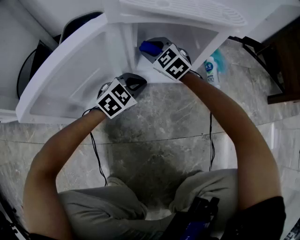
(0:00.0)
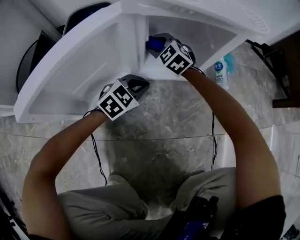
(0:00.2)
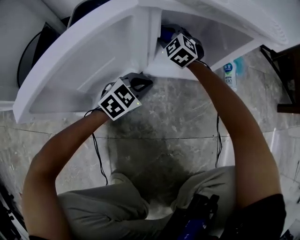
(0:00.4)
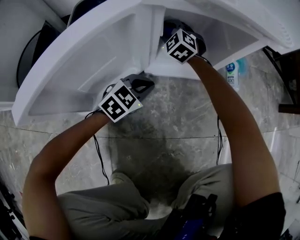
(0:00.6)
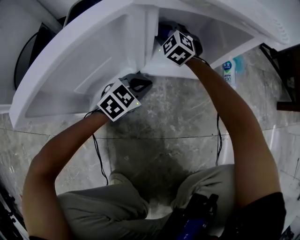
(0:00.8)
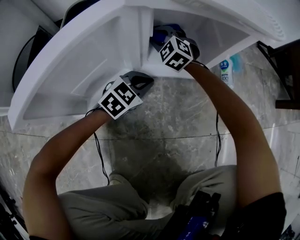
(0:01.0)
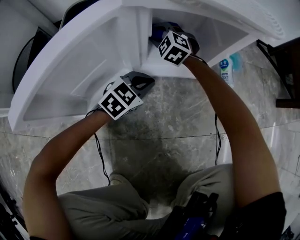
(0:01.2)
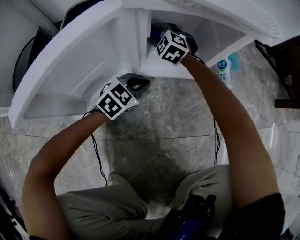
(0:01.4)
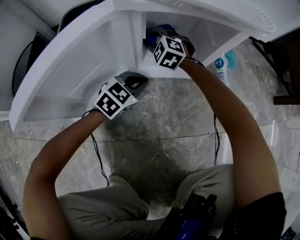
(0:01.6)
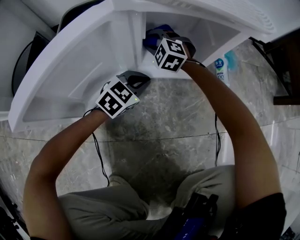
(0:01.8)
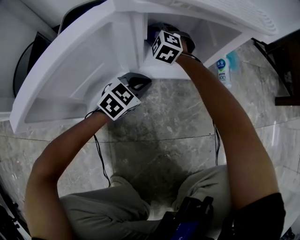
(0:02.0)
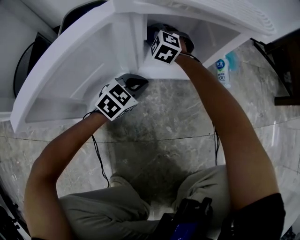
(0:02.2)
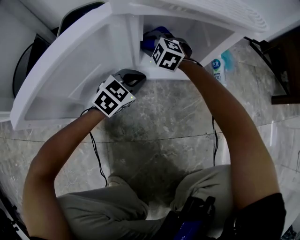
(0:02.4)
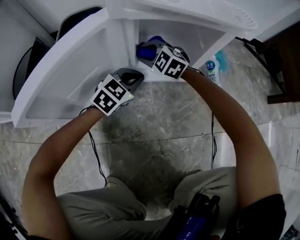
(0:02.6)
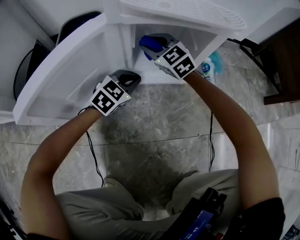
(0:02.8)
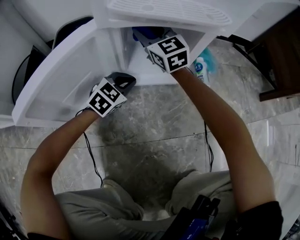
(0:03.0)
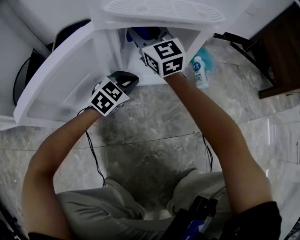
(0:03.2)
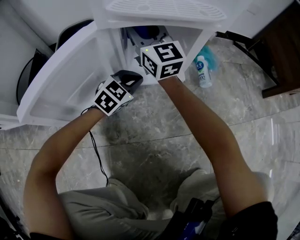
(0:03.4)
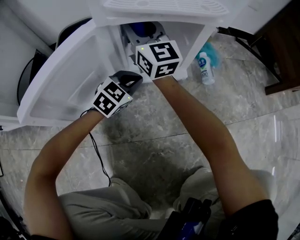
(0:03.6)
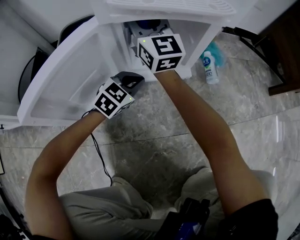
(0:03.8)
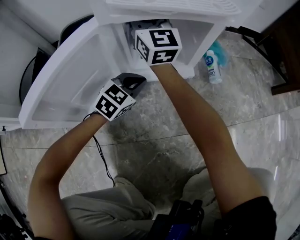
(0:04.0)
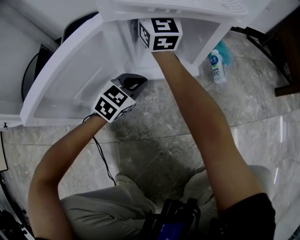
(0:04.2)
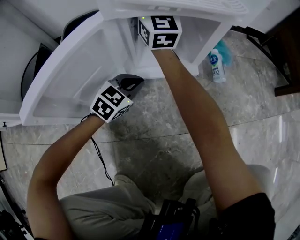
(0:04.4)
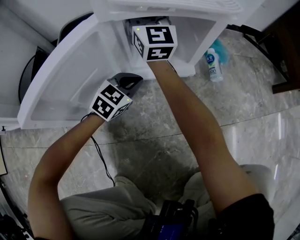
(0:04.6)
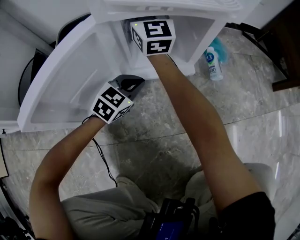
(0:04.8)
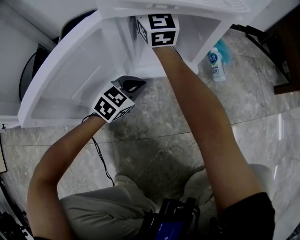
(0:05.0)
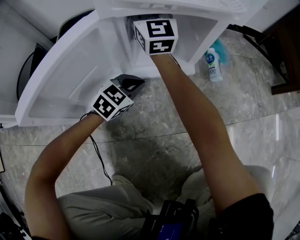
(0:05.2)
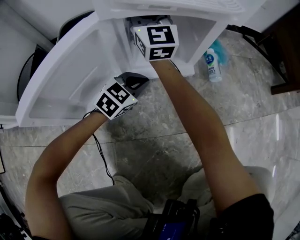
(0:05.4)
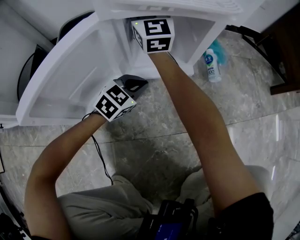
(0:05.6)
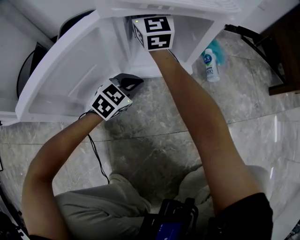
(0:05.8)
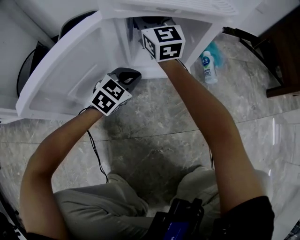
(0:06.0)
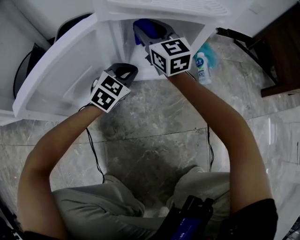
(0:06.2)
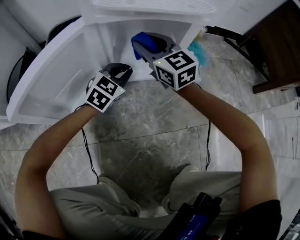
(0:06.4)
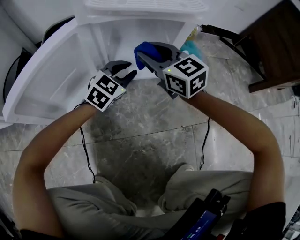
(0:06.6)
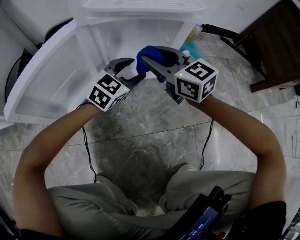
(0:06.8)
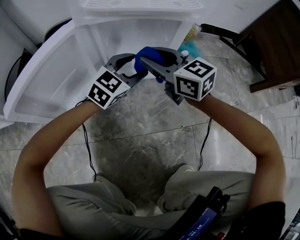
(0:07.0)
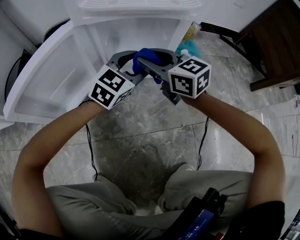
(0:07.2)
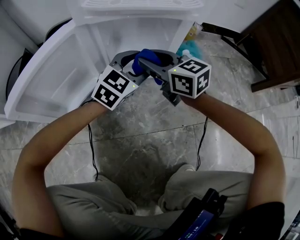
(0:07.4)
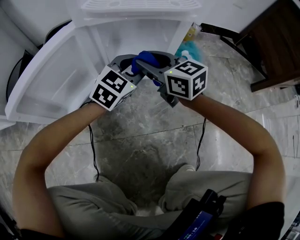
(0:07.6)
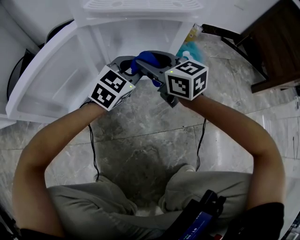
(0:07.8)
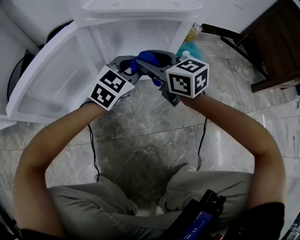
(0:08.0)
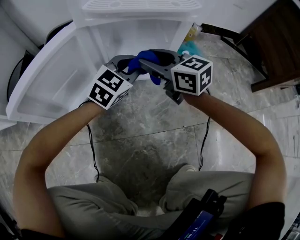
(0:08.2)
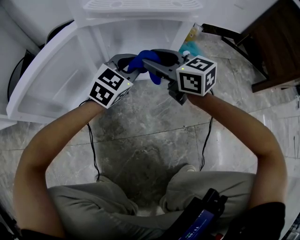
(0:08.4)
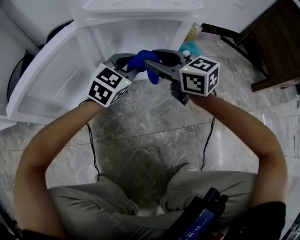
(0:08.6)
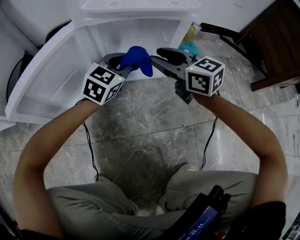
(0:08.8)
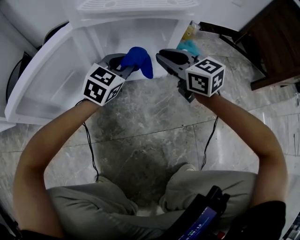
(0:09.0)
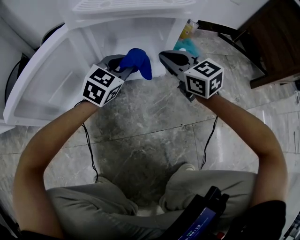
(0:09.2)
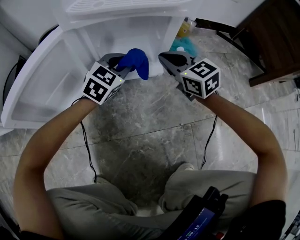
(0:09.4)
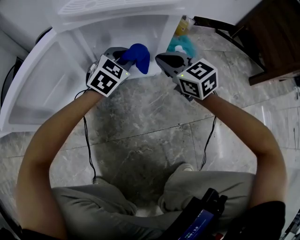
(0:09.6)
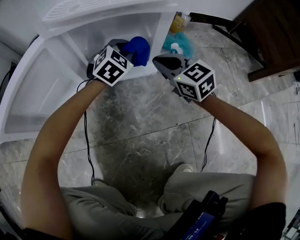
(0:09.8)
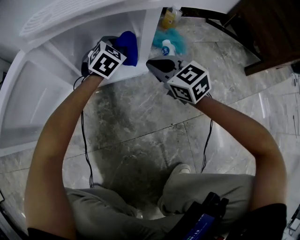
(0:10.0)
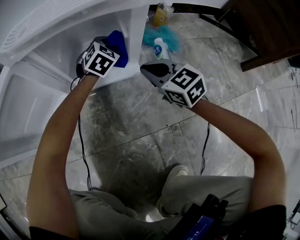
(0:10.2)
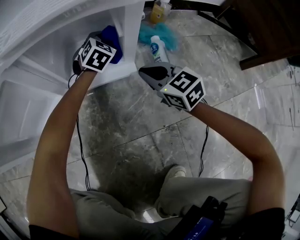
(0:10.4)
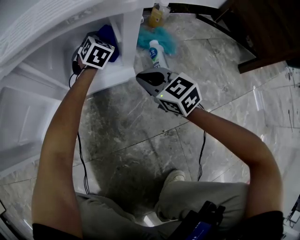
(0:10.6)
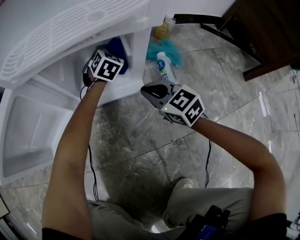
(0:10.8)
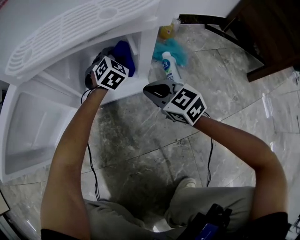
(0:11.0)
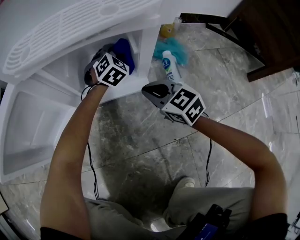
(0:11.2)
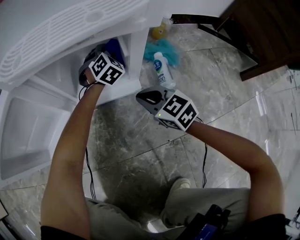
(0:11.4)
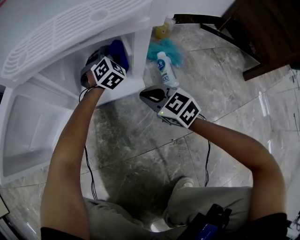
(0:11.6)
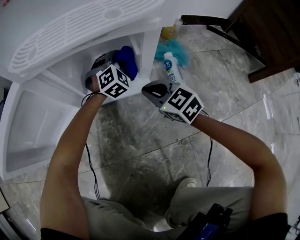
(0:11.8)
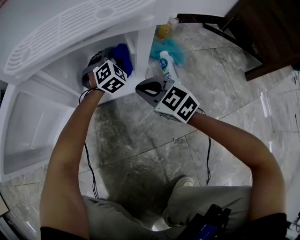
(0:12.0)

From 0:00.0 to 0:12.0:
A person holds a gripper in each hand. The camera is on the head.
From 0:00.0 to 0:01.6: The right gripper heads downward, covering some 5 cm, and swivels approximately 20 degrees.
From 0:01.6 to 0:03.0: The right gripper goes some 20 cm upward, and tilts its fingers roughly 30 degrees upward.
From 0:03.0 to 0:04.4: The right gripper goes about 5 cm upward, and swivels approximately 30 degrees.
From 0:04.4 to 0:06.0: The grippers make only small movements.
From 0:06.0 to 0:07.6: The left gripper heads to the right and upward, covering roughly 15 cm, and opens up. The right gripper is displaced backward, to the right and downward by about 20 cm, and swivels about 30 degrees.
From 0:07.6 to 0:09.0: The right gripper goes roughly 5 cm to the right.
From 0:09.0 to 0:10.4: The right gripper heads downward and to the right, covering approximately 15 cm, while the left gripper heads forward, downward and to the right, covering roughly 20 cm, and rotates approximately 20 degrees.
From 0:10.4 to 0:12.0: The right gripper ends up about 5 cm from where it was, while the left gripper swivels some 20 degrees.

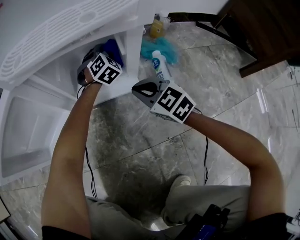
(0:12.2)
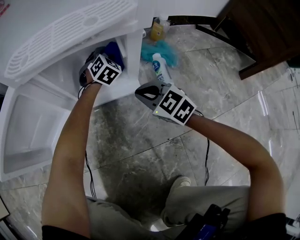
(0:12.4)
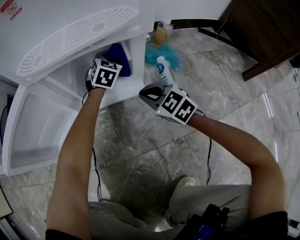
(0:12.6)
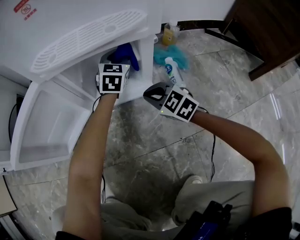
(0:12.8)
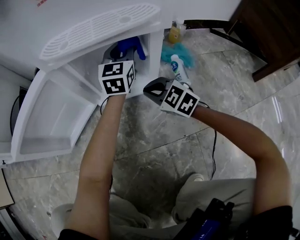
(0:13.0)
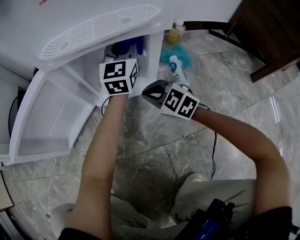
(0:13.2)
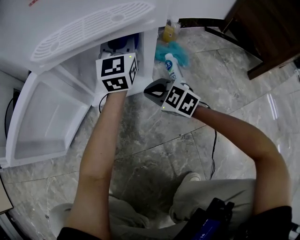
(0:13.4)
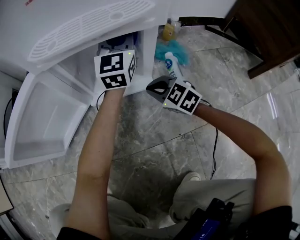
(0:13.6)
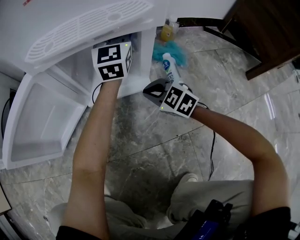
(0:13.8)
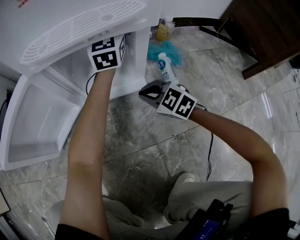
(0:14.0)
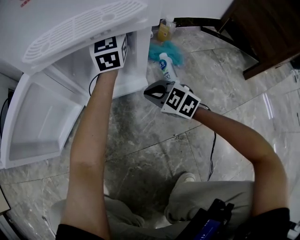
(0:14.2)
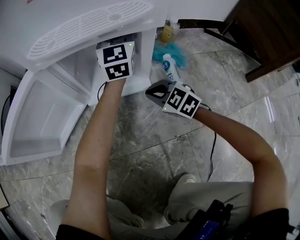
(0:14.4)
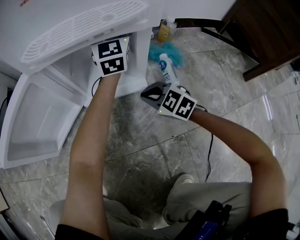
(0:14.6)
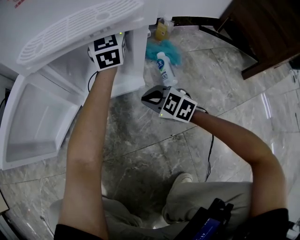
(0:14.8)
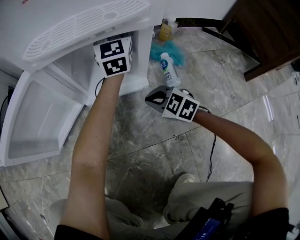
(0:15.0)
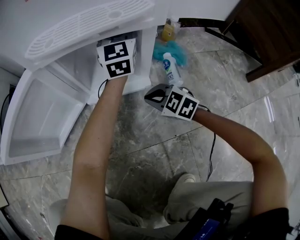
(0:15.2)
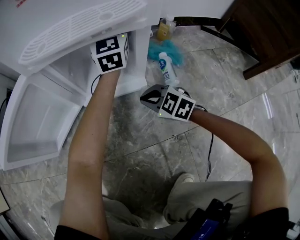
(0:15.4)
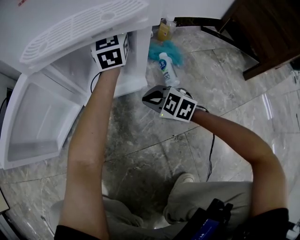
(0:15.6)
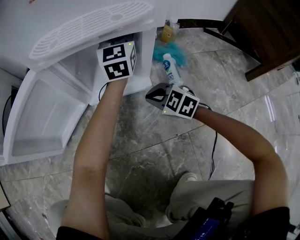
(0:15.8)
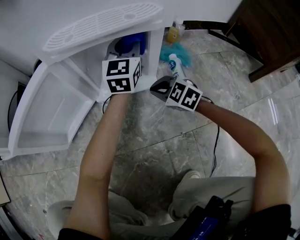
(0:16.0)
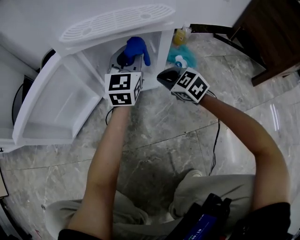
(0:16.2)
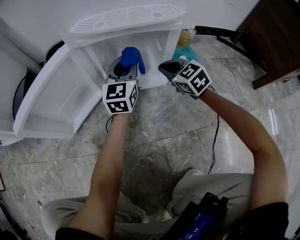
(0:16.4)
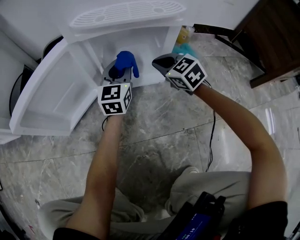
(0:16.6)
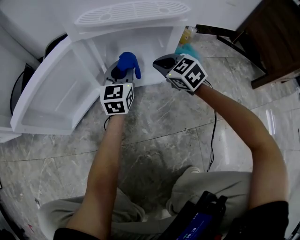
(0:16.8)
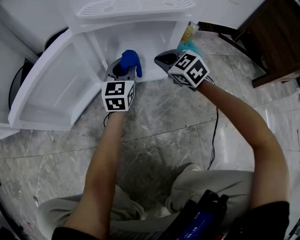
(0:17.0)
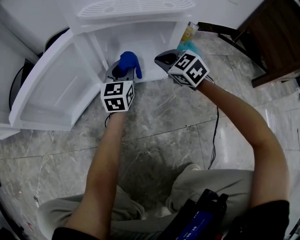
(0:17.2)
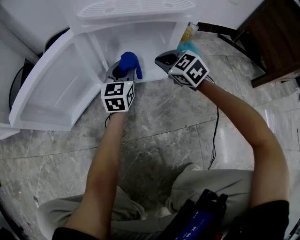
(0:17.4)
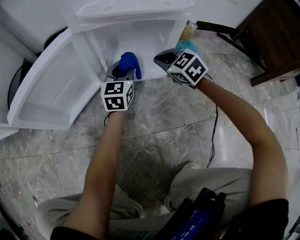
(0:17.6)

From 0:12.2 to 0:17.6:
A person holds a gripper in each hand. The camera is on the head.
From 0:12.2 to 0:13.6: The left gripper goes about 25 cm upward, and angles its fingers upward, by approximately 40 degrees.
From 0:13.6 to 0:15.0: The grippers move only a little.
From 0:15.0 to 0:16.2: The right gripper is displaced forward and upward by roughly 10 cm. Meanwhile the left gripper heads backward and to the left, covering roughly 10 cm.
From 0:16.2 to 0:17.6: The left gripper goes approximately 15 cm downward and to the left. The right gripper shifts by roughly 5 cm.

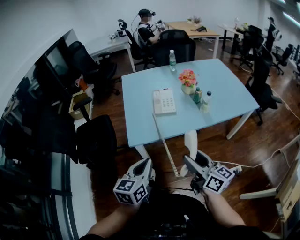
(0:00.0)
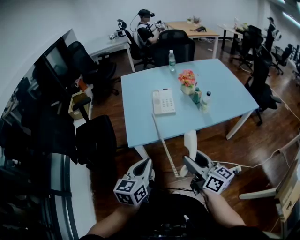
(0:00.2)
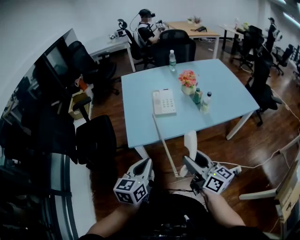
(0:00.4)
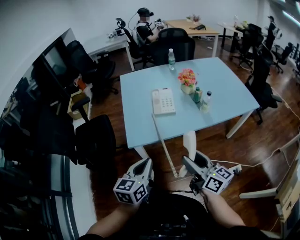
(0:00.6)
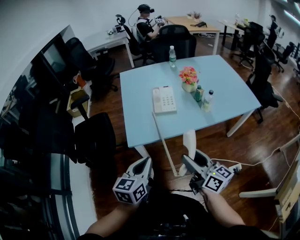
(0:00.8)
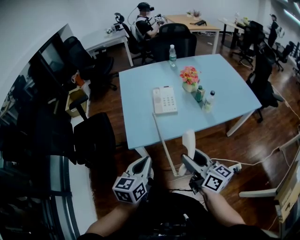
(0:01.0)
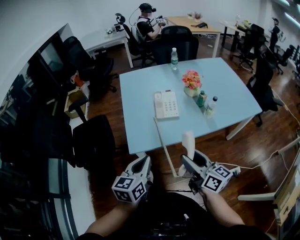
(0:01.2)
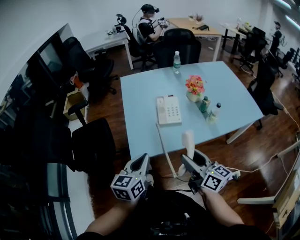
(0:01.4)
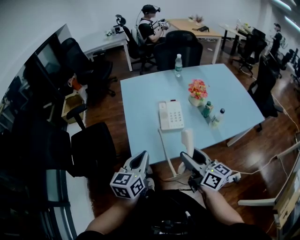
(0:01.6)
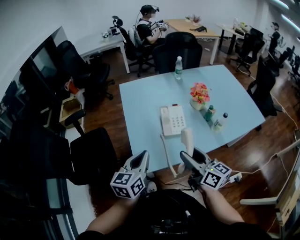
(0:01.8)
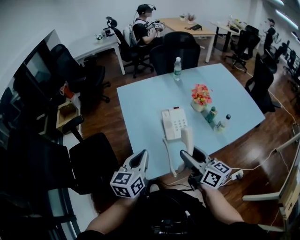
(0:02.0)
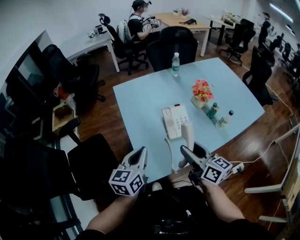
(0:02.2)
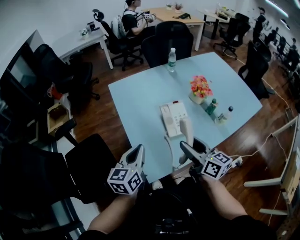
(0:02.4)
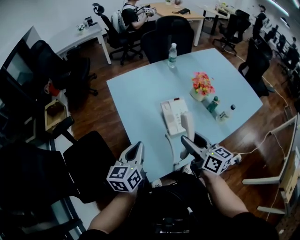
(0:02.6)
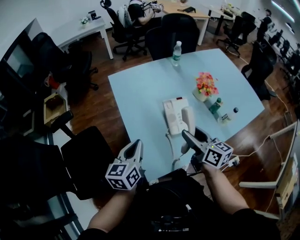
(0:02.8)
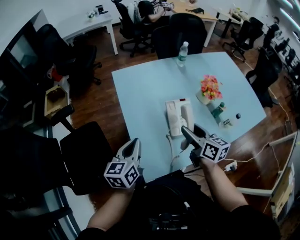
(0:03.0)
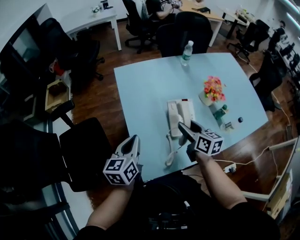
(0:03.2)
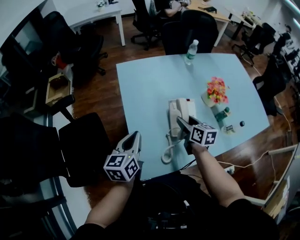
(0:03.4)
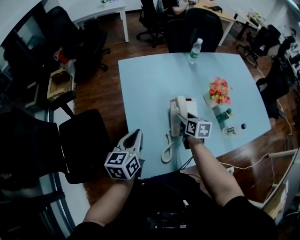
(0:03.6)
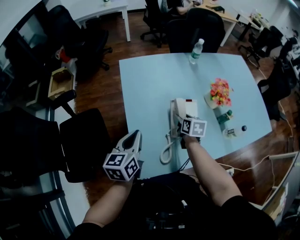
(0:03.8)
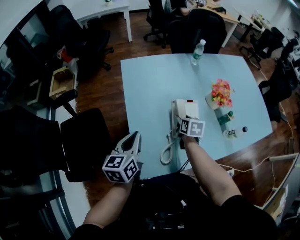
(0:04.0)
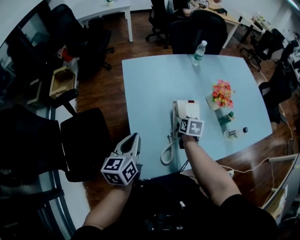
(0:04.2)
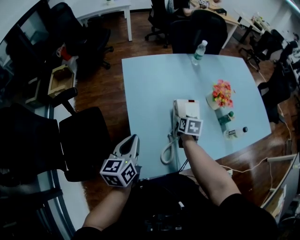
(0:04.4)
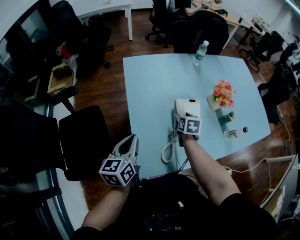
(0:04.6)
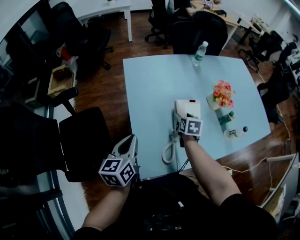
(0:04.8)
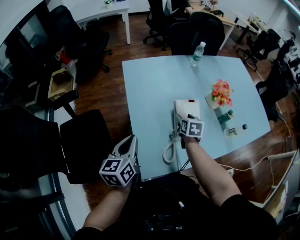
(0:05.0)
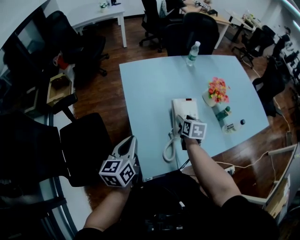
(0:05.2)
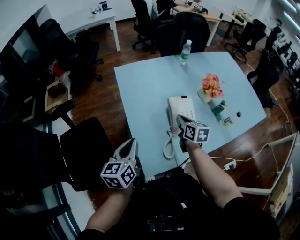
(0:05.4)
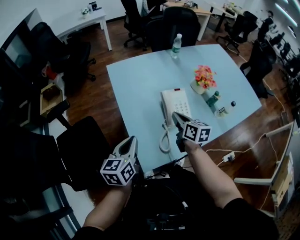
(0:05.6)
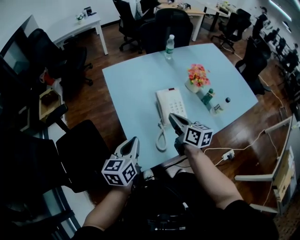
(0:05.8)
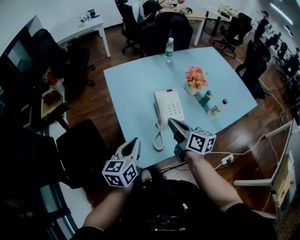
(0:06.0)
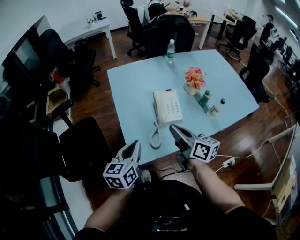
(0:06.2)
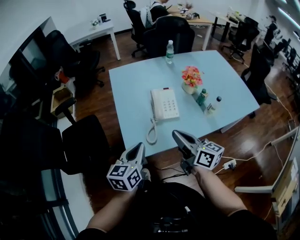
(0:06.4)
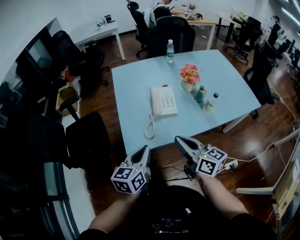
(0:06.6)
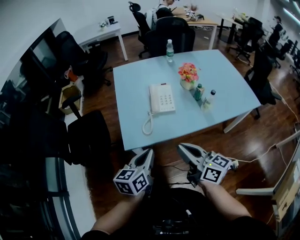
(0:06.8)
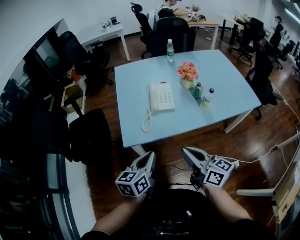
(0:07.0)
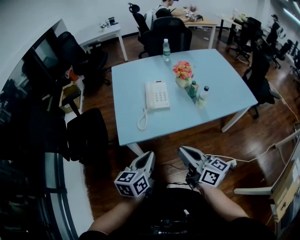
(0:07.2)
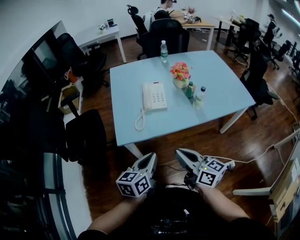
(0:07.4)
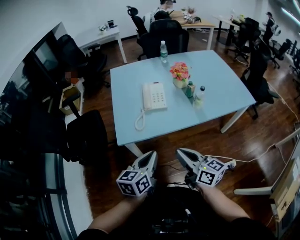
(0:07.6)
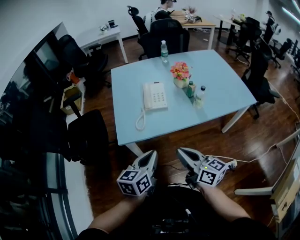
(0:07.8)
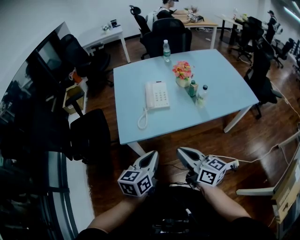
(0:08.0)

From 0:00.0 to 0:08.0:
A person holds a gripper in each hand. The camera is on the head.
From 0:00.0 to 0:01.6: The two grippers go roughly 20 cm forward.
From 0:01.6 to 0:03.2: The left gripper goes approximately 25 cm forward and to the left. Meanwhile the right gripper is displaced forward and downward by about 30 cm, and turns by some 20 degrees.
From 0:03.2 to 0:04.8: The right gripper goes approximately 15 cm downward and forward, and turns by roughly 30 degrees.
From 0:04.8 to 0:06.4: The right gripper travels backward and upward by approximately 35 cm, points its fingers approximately 50 degrees further upward, and closes its fingers. The left gripper is displaced backward and to the right by roughly 20 cm.
From 0:06.4 to 0:08.0: Both grippers travel together backward and to the right, about 20 cm.
